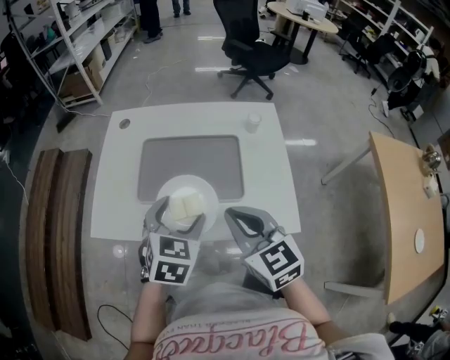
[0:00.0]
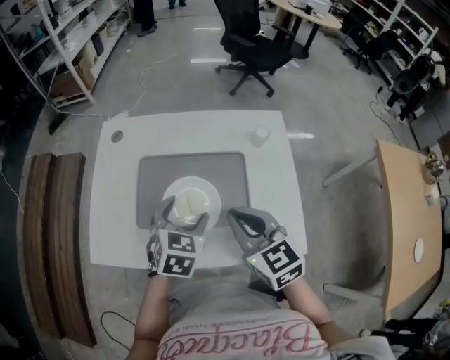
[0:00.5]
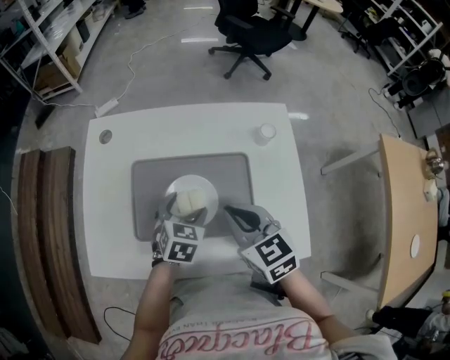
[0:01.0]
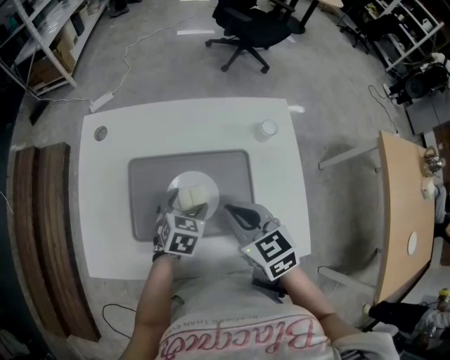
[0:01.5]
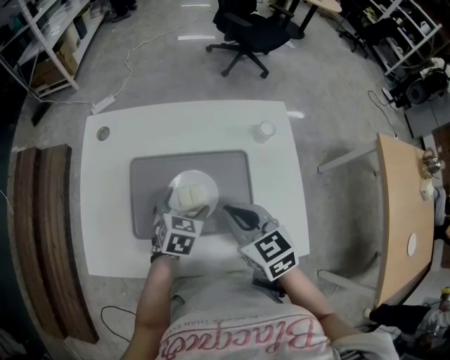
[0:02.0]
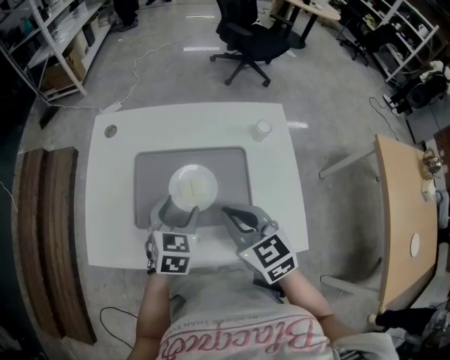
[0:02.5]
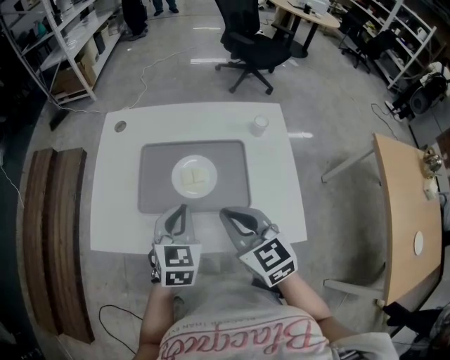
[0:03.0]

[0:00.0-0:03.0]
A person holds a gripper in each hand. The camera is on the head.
0:00.0 to 0:01.5: The left gripper heads downward and forward, covering about 20 cm, while the right gripper goes some 15 cm forward and downward.
0:01.5 to 0:03.0: The left gripper moves upward and backward, about 15 cm, changes its angle by about 20 degrees, and closes its fingers; the right gripper moves backward, some 5 cm.

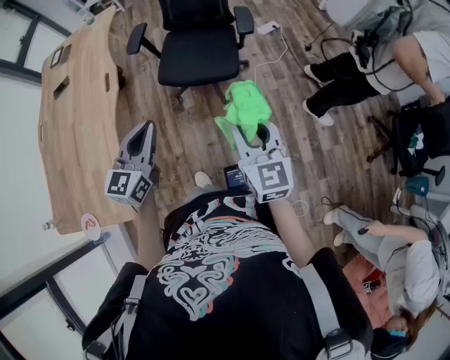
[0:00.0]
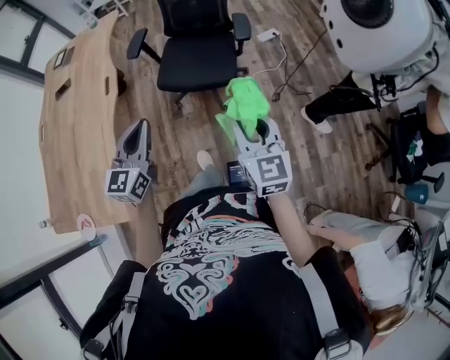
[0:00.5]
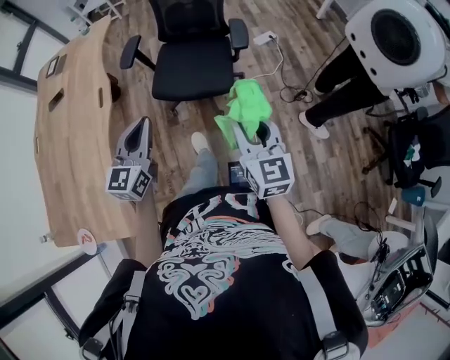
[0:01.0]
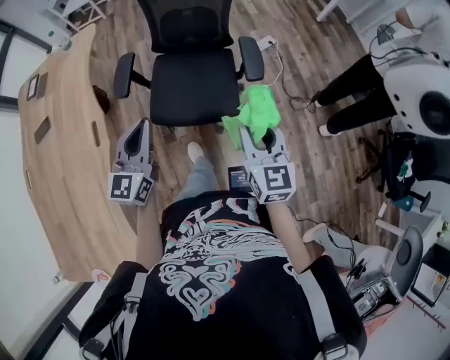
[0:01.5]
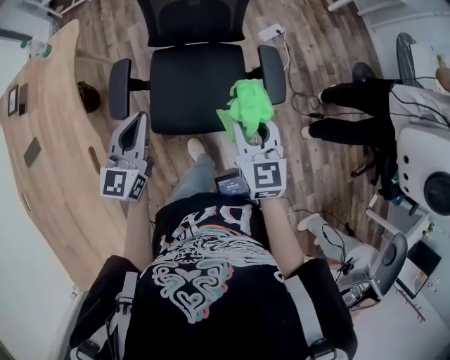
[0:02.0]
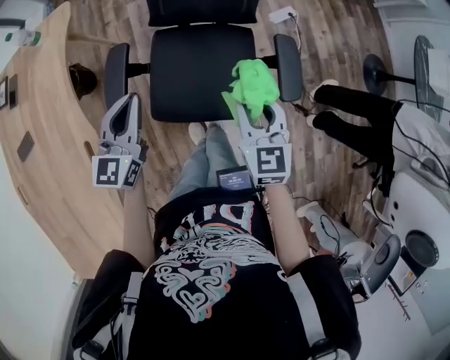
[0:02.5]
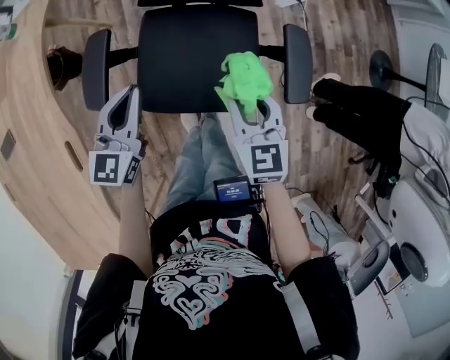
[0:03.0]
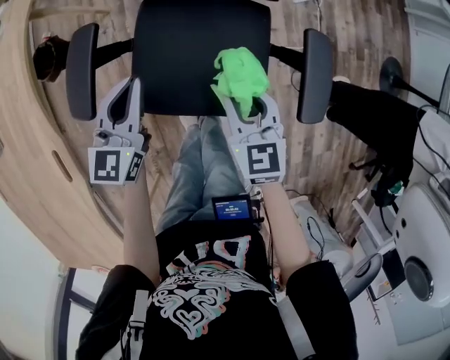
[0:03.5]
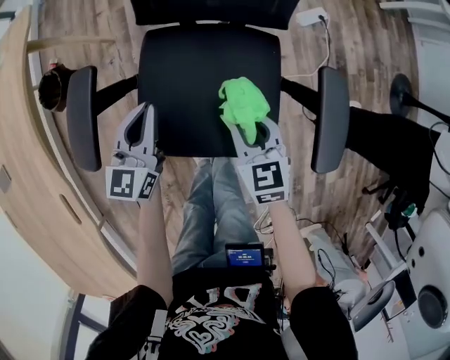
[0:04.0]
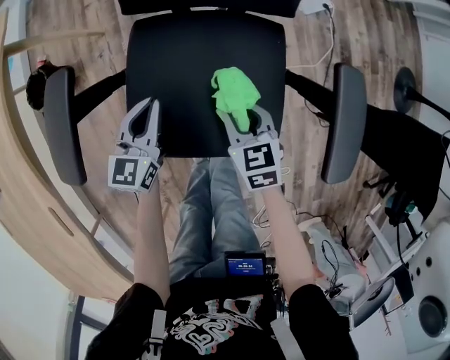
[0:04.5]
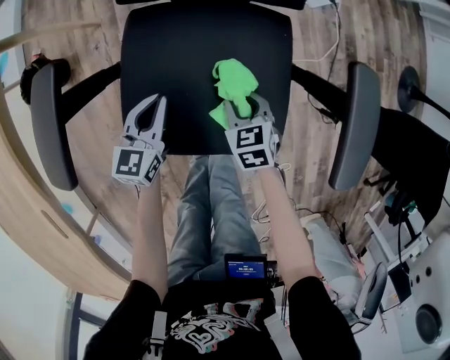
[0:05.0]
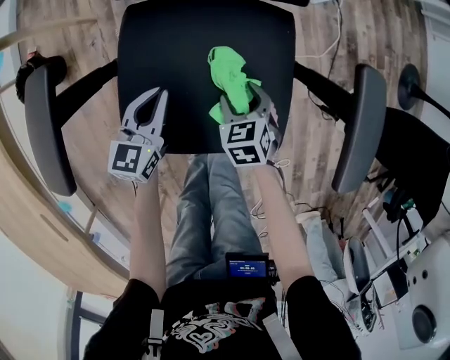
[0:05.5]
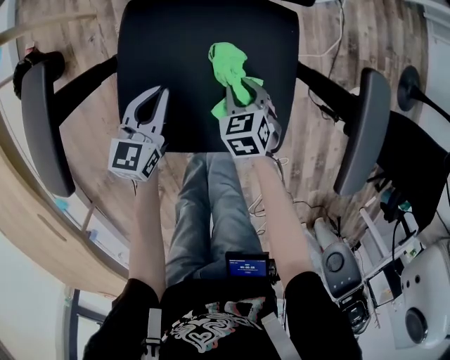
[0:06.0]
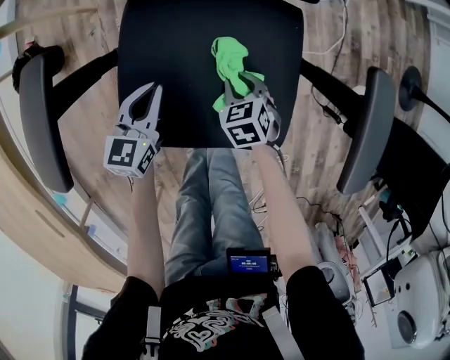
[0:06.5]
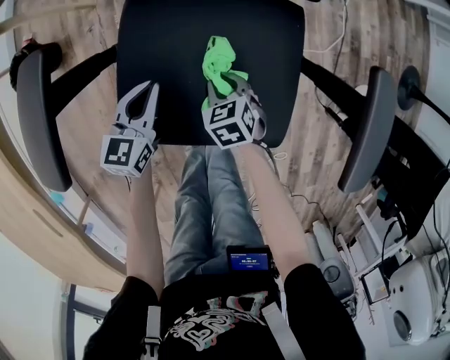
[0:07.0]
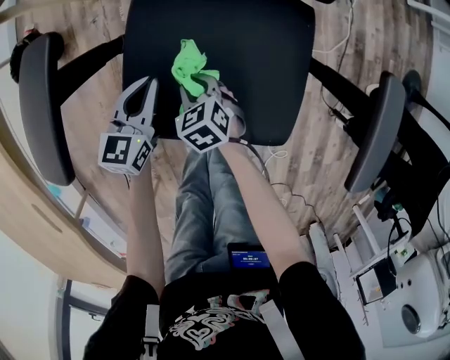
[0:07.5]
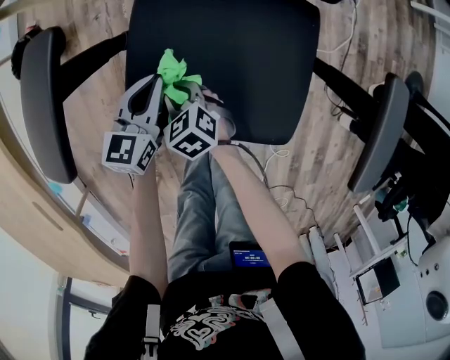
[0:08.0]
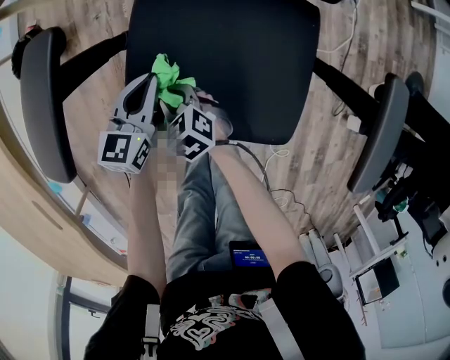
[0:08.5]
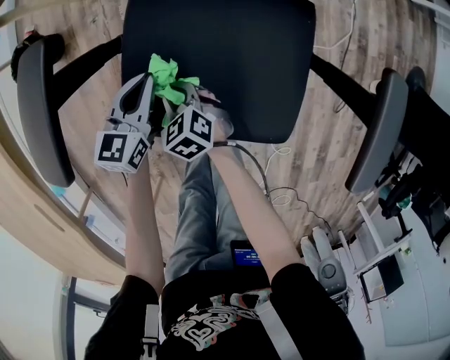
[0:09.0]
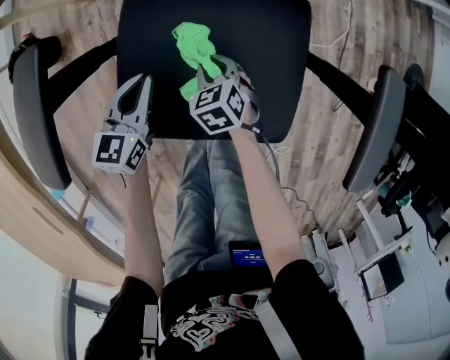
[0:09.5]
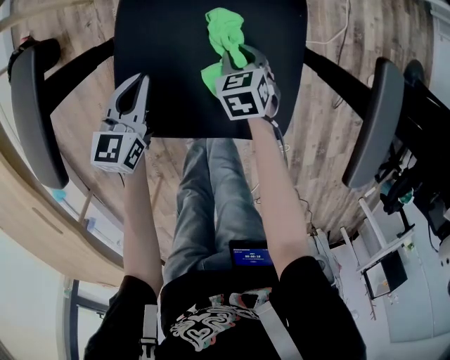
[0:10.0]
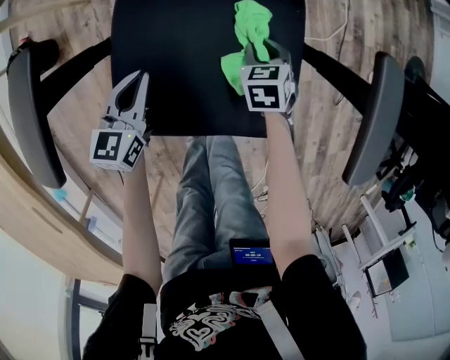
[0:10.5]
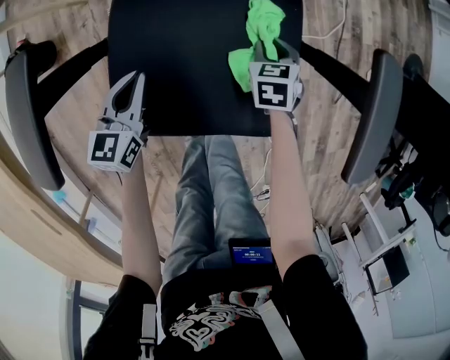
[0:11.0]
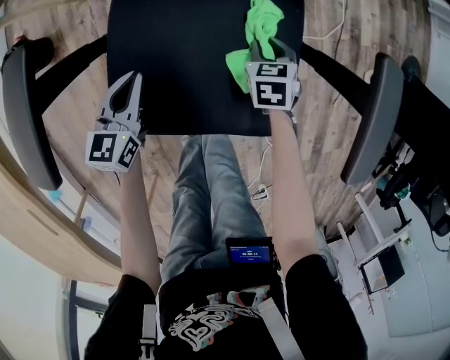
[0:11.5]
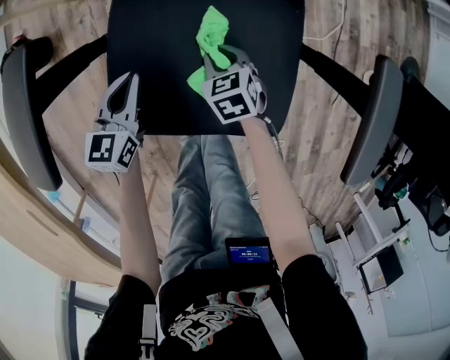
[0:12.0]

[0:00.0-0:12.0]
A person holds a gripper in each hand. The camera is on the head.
0:00.0 to 0:02.0: Both grippers are carried forward, approximately 50 cm.
0:02.0 to 0:04.0: The two grippers go roughly 30 cm downward and forward. The right gripper rotates some 20 degrees.
0:04.0 to 0:06.0: The grippers both shift downward by some 20 cm. The right gripper turns by approximately 20 degrees, and opens, then closes once more.
0:06.0 to 0:08.0: The right gripper moves approximately 20 cm, and changes its angle by about 30 degrees, while the left gripper shifts by roughly 5 cm.
0:08.0 to 0:10.0: The right gripper ends up approximately 20 cm from where it was, and changes its angle by approximately 30 degrees.
0:10.0 to 0:12.0: The right gripper travels to the right and back again, some 10 cm each way.

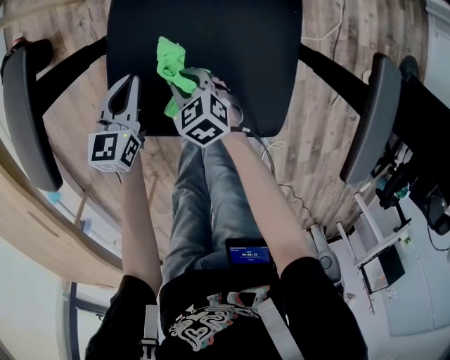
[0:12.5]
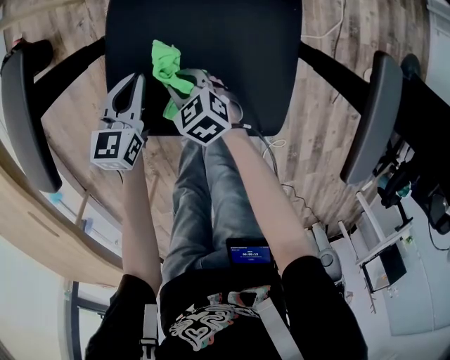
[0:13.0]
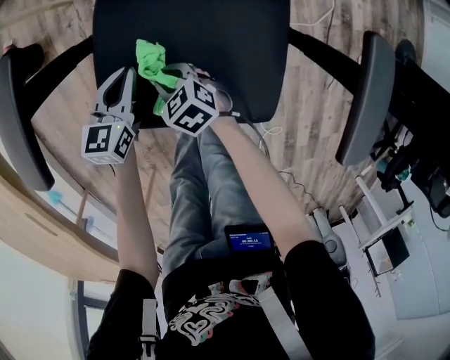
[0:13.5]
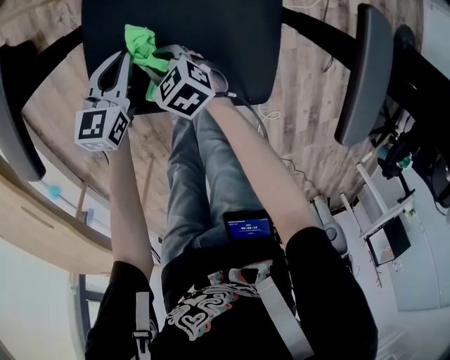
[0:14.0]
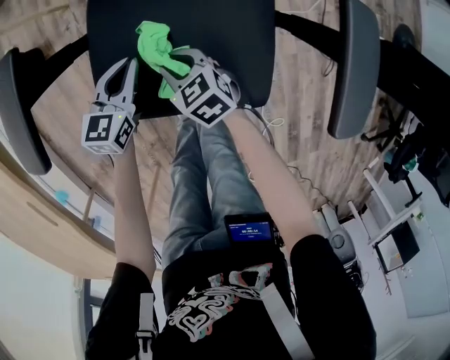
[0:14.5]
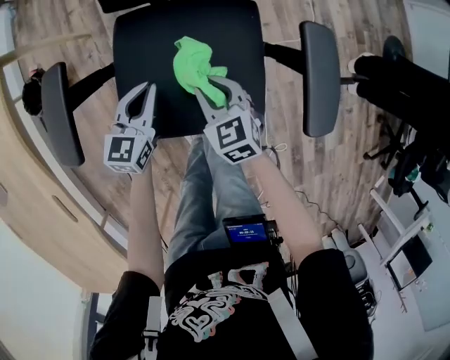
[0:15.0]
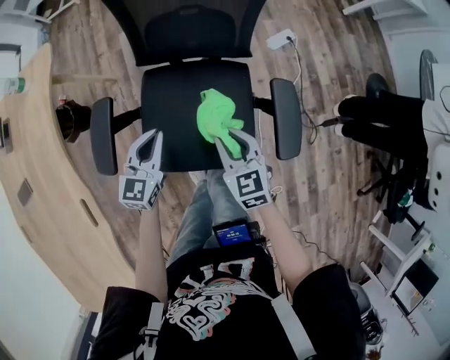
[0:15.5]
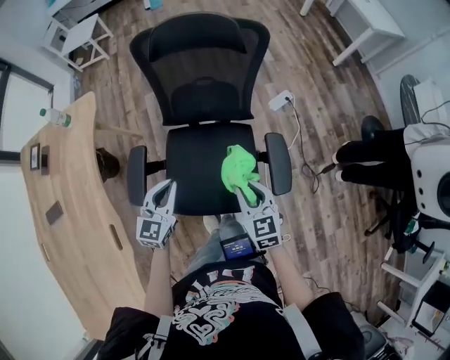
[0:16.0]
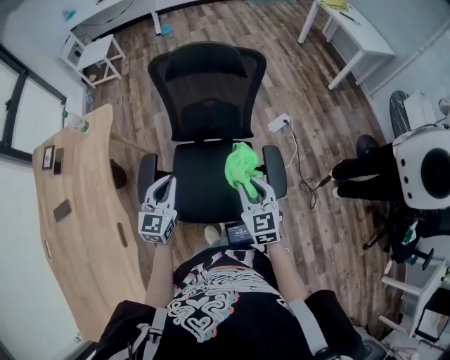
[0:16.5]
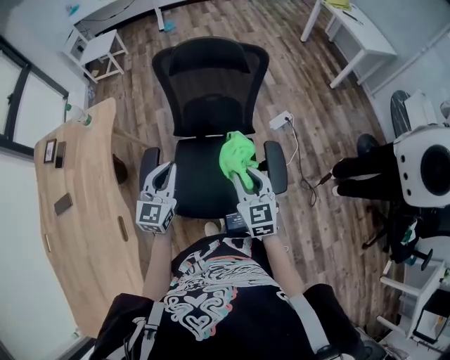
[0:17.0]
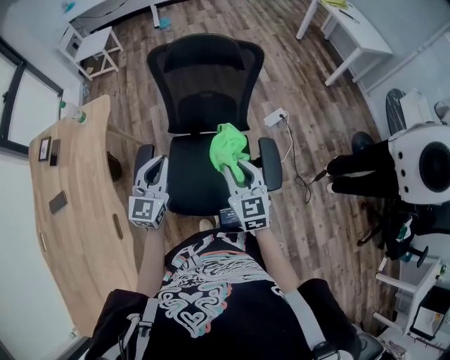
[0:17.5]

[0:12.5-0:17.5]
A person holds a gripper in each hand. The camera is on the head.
0:12.5 to 0:15.0: The right gripper travels upward and to the right by approximately 20 cm, and rotates roughly 20 degrees. The left gripper heads upward and to the right, covering roughly 15 cm.
0:15.0 to 0:17.5: The two grippers go roughly 40 cm upward. The left gripper changes its angle by about 30 degrees; the right gripper rotates about 30 degrees.

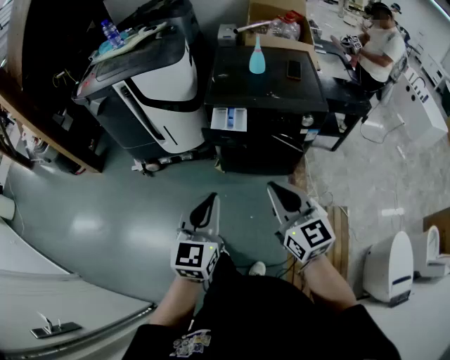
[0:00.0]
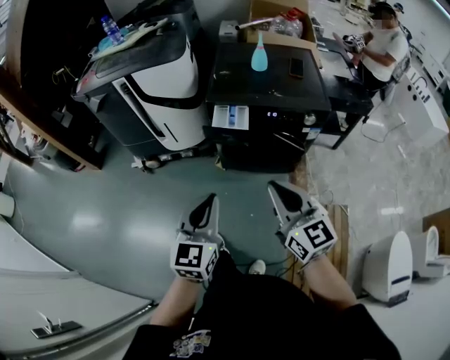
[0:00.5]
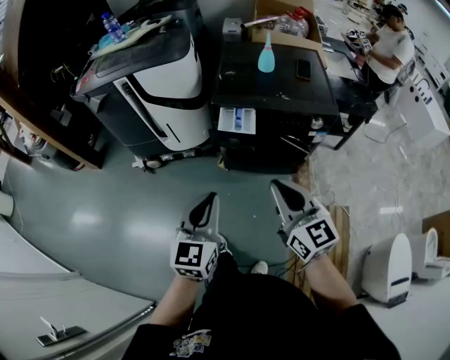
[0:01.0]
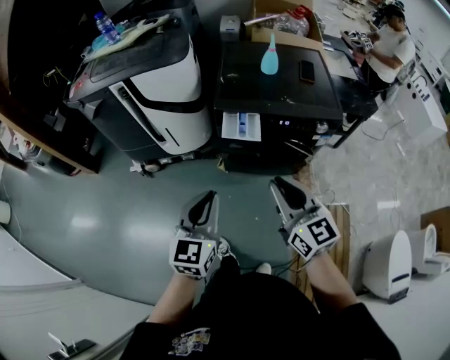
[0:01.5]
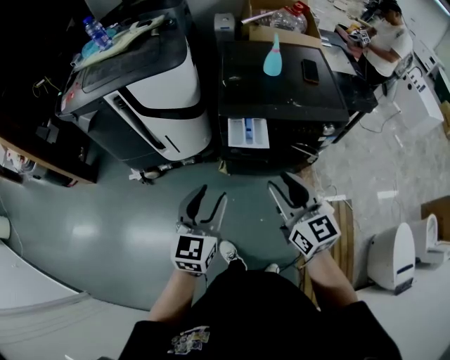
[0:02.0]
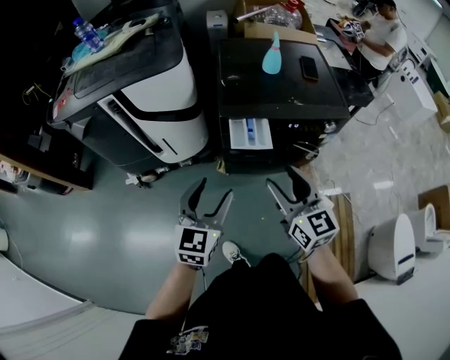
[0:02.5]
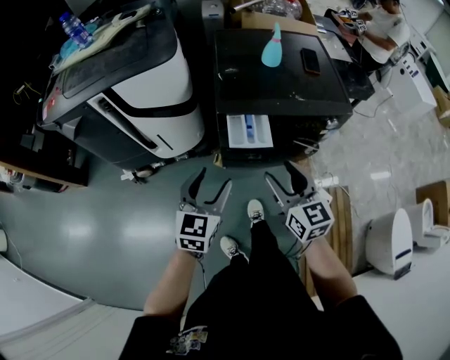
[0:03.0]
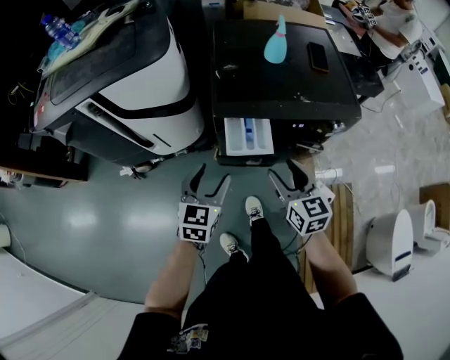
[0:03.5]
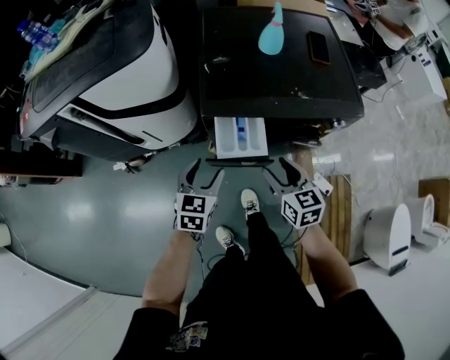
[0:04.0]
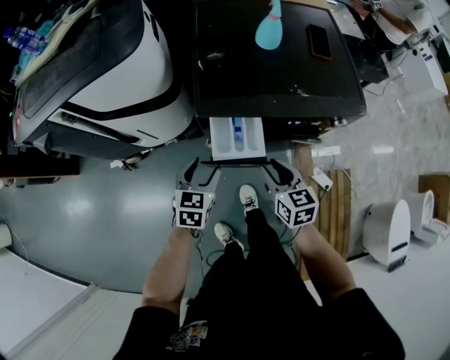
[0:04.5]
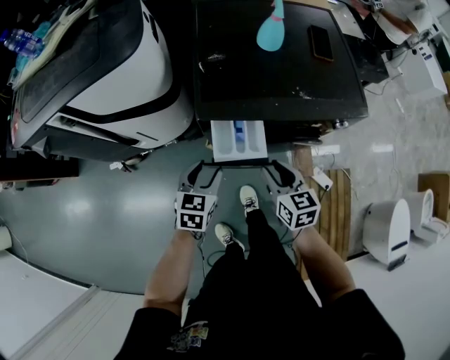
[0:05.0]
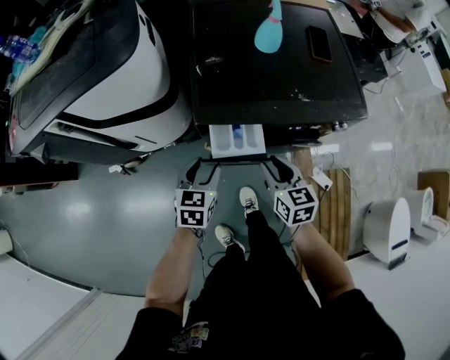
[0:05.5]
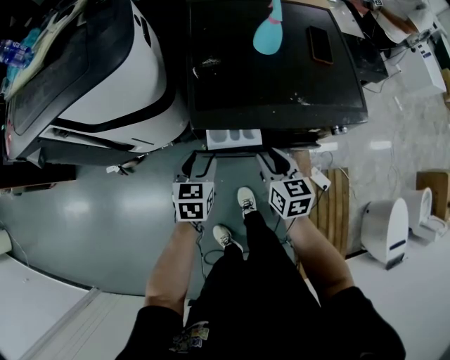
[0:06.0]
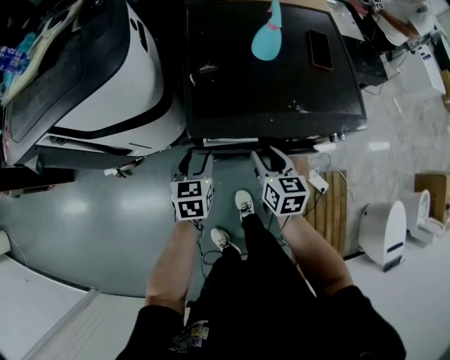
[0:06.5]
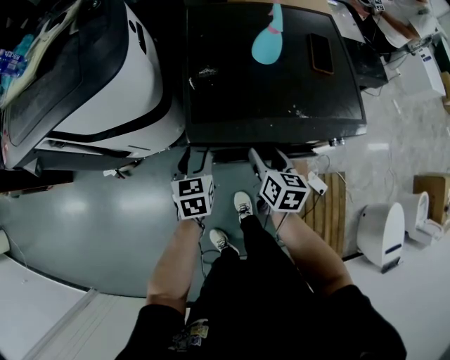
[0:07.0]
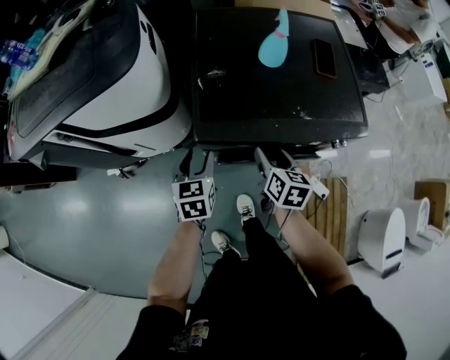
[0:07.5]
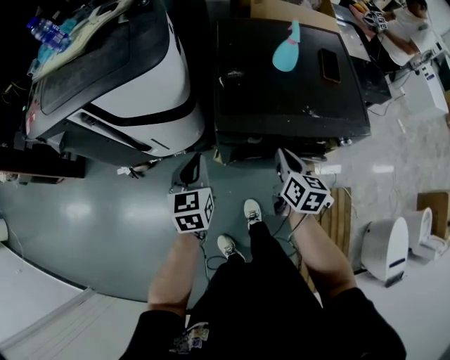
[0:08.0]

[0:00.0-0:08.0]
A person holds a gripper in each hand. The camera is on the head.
0:00.0 to 0:02.0: The two grippers go roughly 20 cm forward and to the left. The left gripper opens its fingers; the right gripper opens up.
0:02.0 to 0:04.0: The left gripper shifts some 25 cm forward and downward, and turns by some 20 degrees; the right gripper heads downward and forward, covering some 25 cm, and turns by roughly 20 degrees.
0:04.0 to 0:06.0: The grippers both shift forward by approximately 10 cm. The right gripper closes its fingers.
0:06.0 to 0:08.0: The left gripper shifts approximately 15 cm upward and to the left, and closes up; the right gripper heads upward, covering about 5 cm, and closes its fingers.
